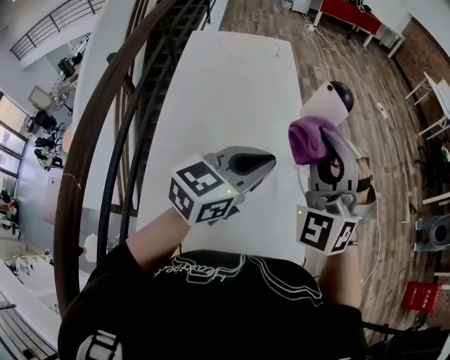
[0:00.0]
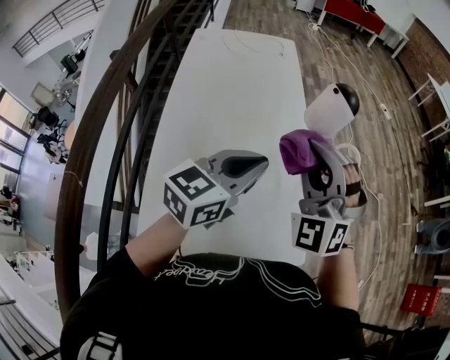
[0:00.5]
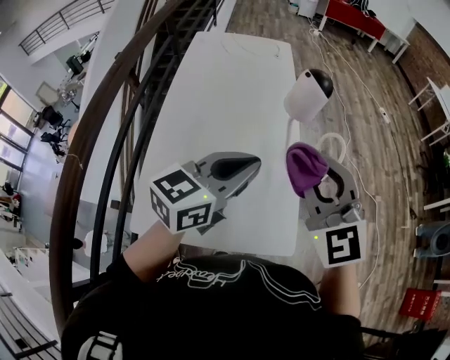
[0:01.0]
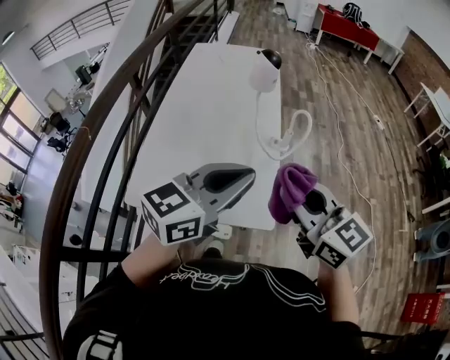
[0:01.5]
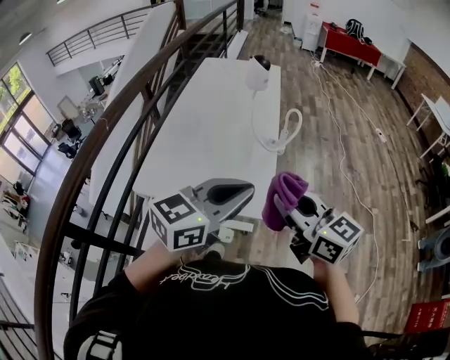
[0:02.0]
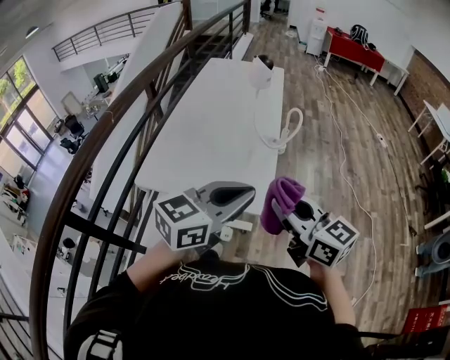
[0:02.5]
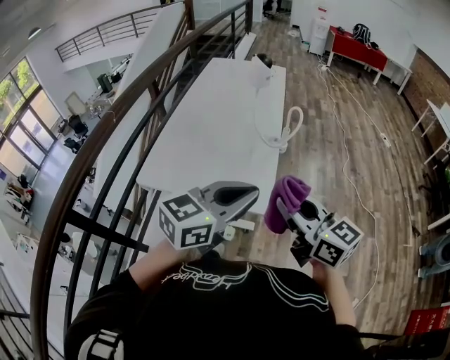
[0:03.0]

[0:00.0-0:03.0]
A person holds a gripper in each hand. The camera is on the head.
0:00.0 to 0:01.5: The grippers both shift backward and to the right by approximately 25 cm. The right gripper twists approximately 70 degrees clockwise, seen from behind.
0:01.5 to 0:03.0: The left gripper travels backward and to the right by about 15 cm, while the right gripper heads backward, covering roughly 10 cm.

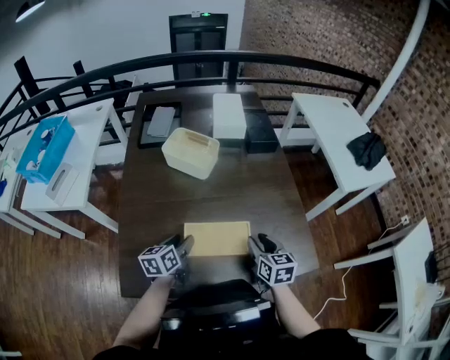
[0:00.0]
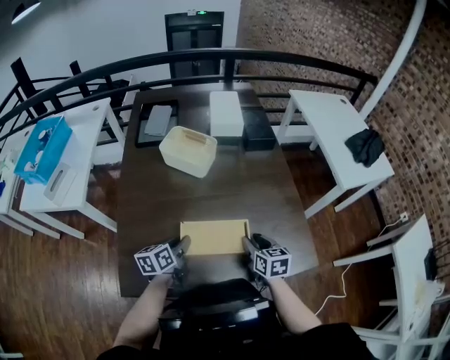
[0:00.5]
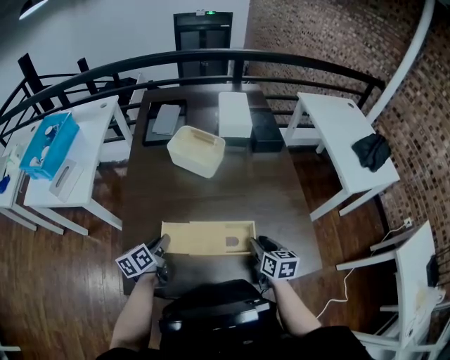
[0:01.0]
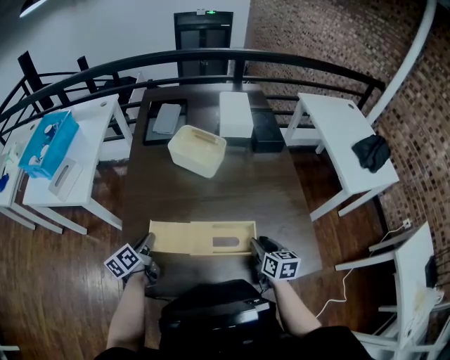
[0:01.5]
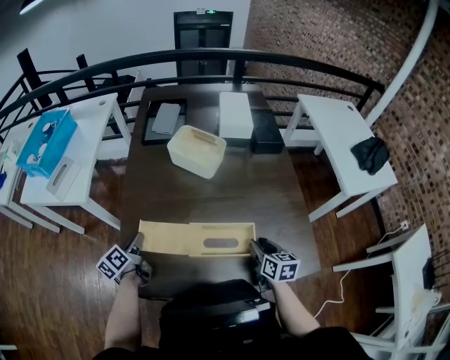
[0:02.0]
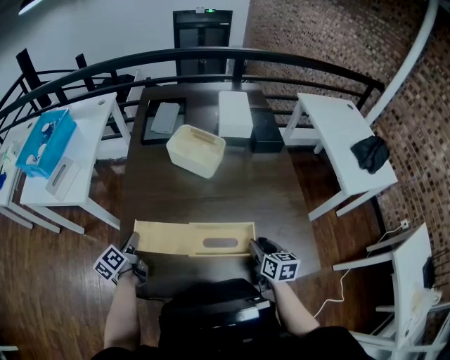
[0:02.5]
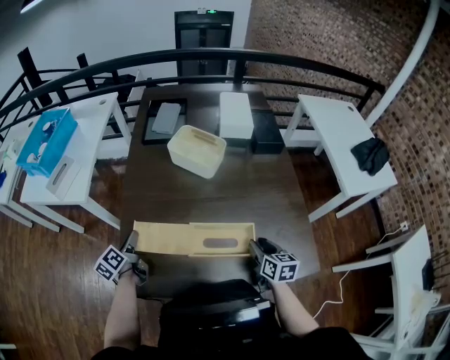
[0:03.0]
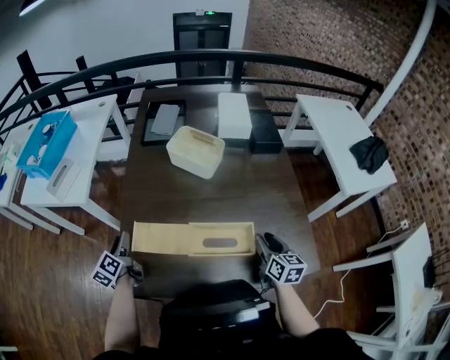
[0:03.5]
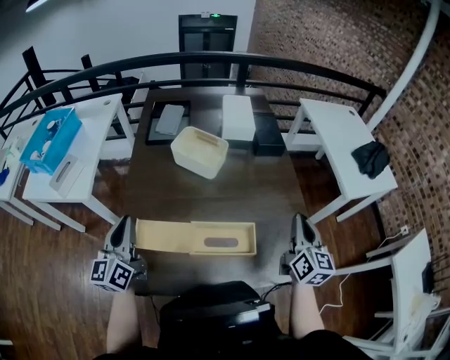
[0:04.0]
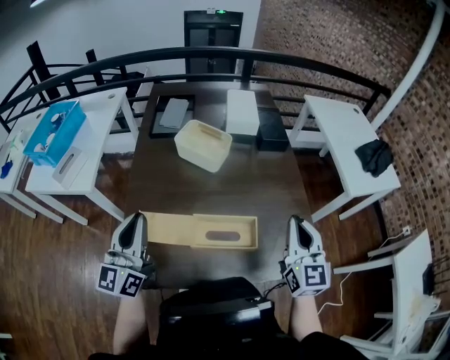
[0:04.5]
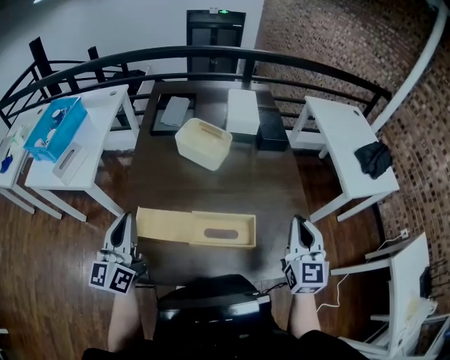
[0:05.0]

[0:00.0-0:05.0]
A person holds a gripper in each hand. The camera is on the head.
0:00.0 to 0:02.5: The left gripper goes approximately 20 cm to the left, turns by about 30 degrees, and closes.
0:02.5 to 0:05.0: The grippers both shift upward by approximately 20 cm. The right gripper changes its angle by roughly 40 degrees, and closes its fingers; the left gripper tips its fingers upward by approximately 30 degrees, and opens and closes again.

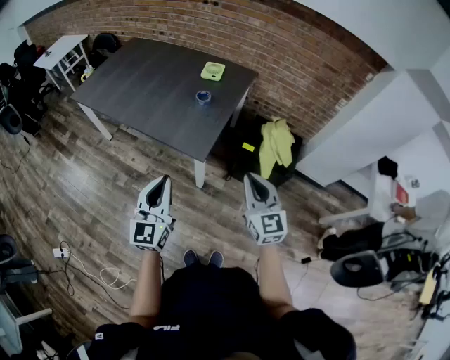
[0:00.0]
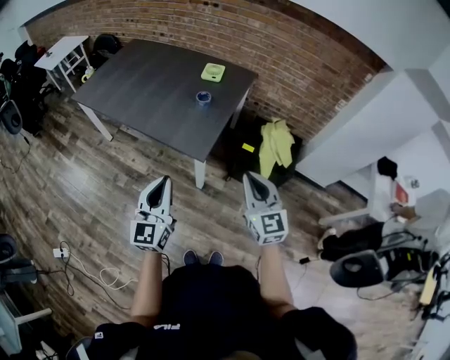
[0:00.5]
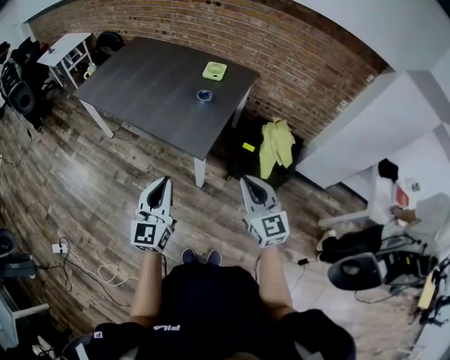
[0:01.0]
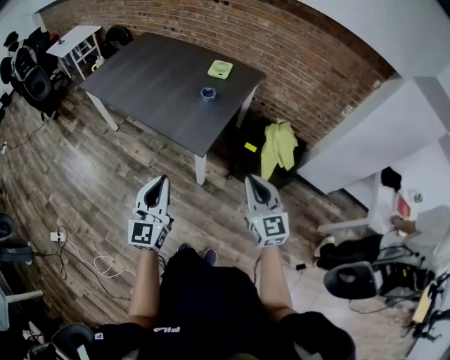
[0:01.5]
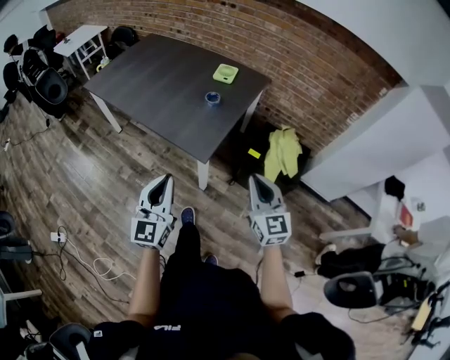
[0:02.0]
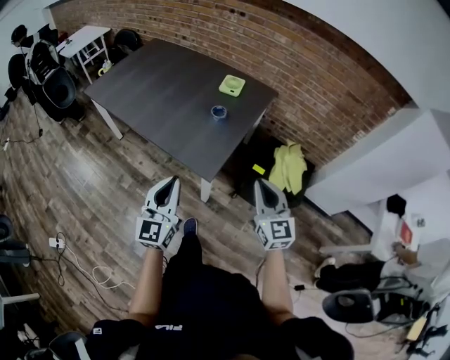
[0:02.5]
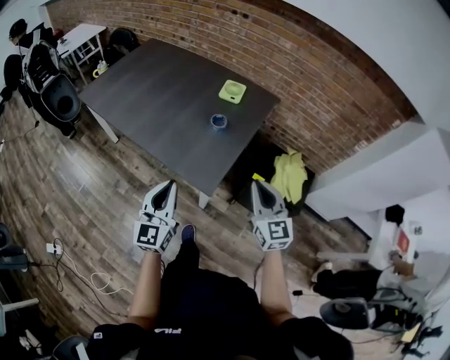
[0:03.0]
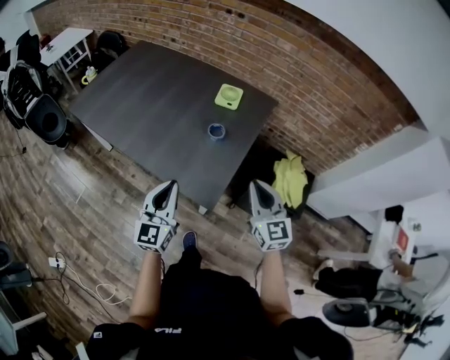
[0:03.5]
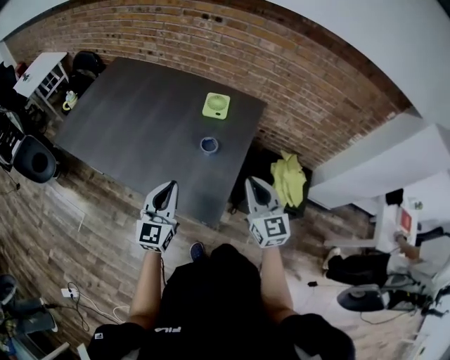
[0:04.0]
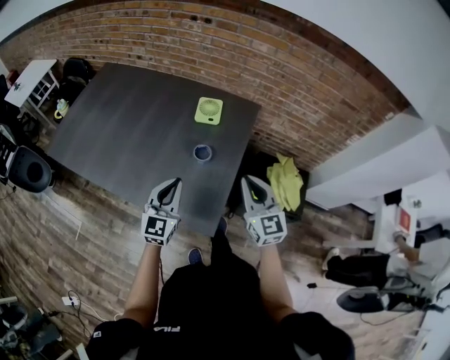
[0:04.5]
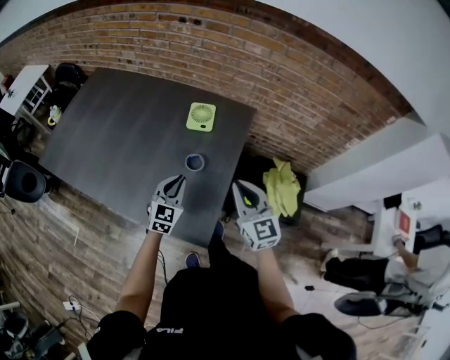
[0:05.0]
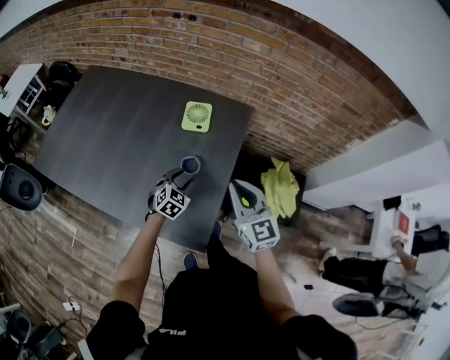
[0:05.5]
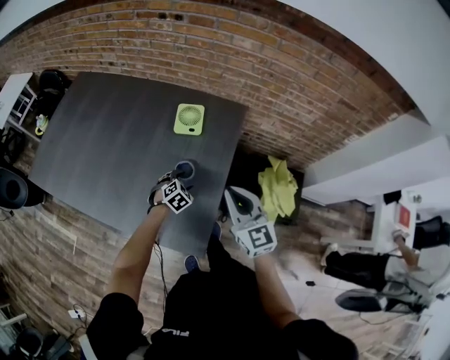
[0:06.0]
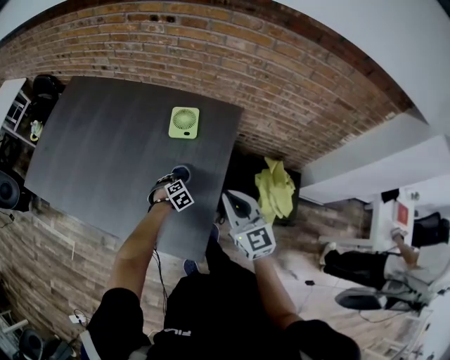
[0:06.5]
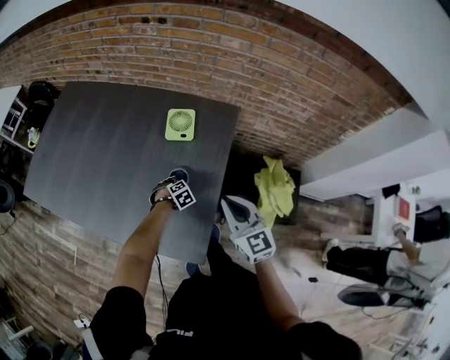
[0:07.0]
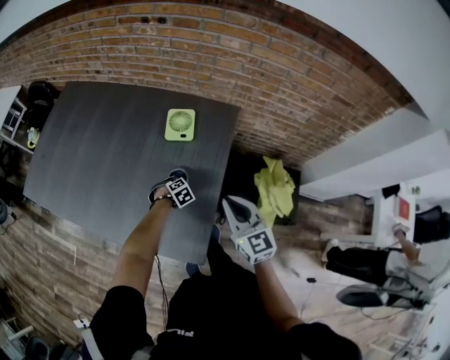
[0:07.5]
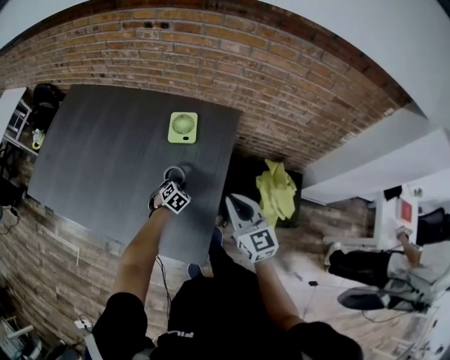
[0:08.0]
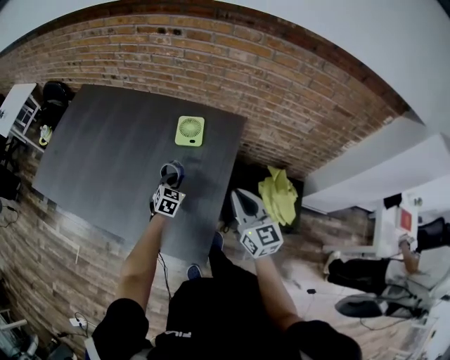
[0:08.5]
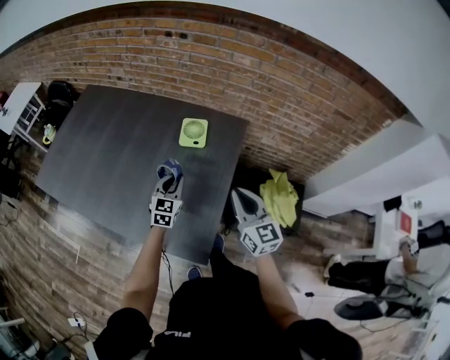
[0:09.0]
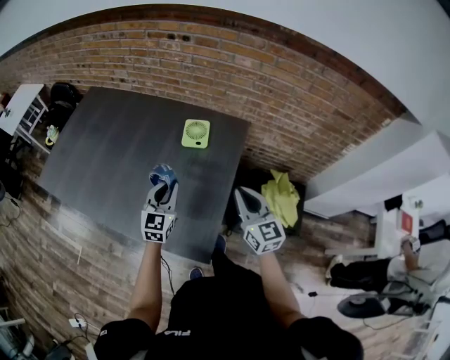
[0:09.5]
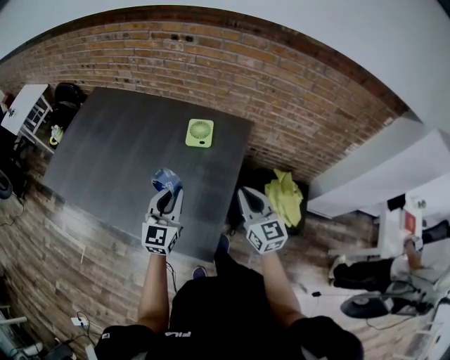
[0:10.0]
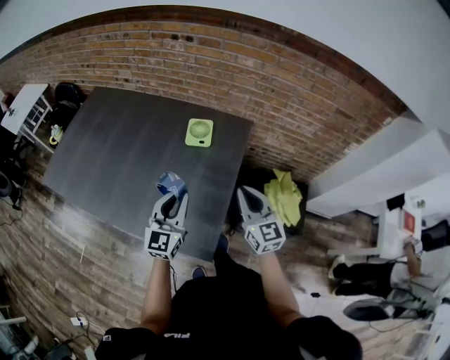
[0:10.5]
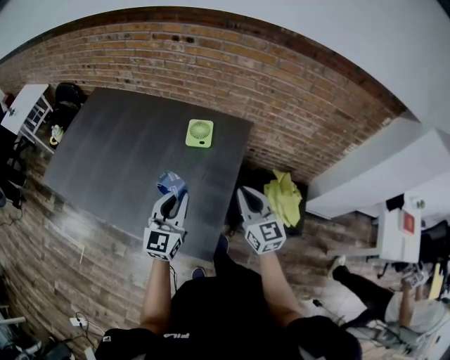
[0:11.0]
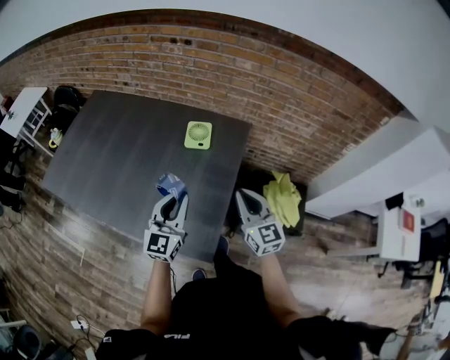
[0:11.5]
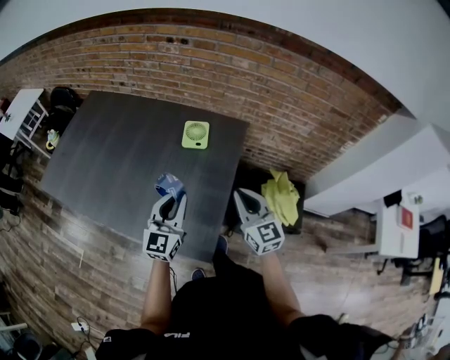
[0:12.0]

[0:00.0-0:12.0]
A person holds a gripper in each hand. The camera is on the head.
0:00.0 to 0:02.0: The grippers make only small movements.
0:02.0 to 0:04.0: Both grippers travel together forward, about 30 cm.
0:04.0 to 0:06.0: The right gripper moves forward, roughly 15 cm; the left gripper heads downward, forward and to the right, covering approximately 40 cm, angles its fingers downward, by roughly 60 degrees, and opens.
0:06.0 to 0:08.0: The left gripper closes its fingers.
0:08.0 to 0:10.0: The left gripper travels upward by roughly 30 cm, and tips its fingers upward by about 60 degrees.
0:10.0 to 0:12.0: The grippers make only small movements.

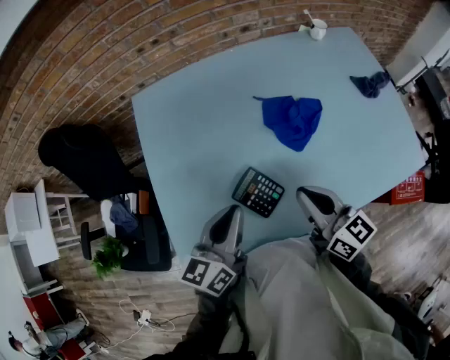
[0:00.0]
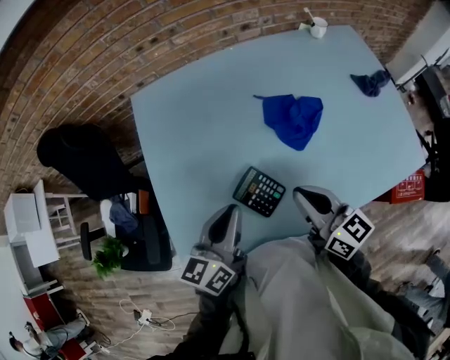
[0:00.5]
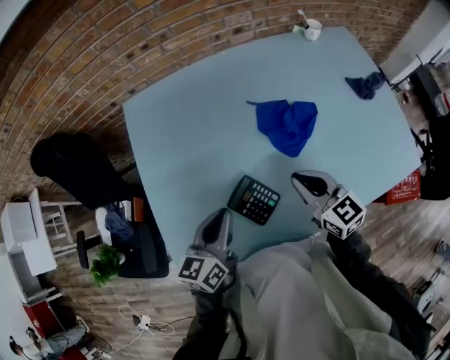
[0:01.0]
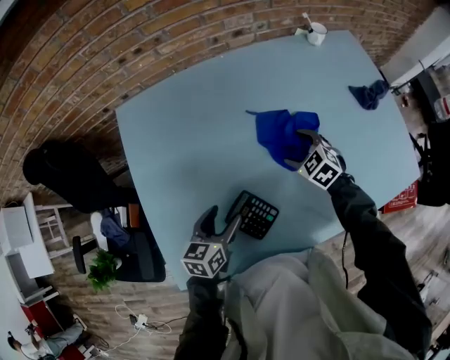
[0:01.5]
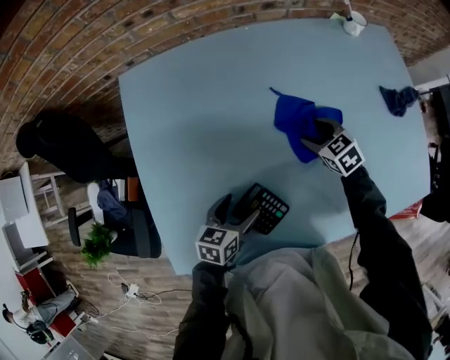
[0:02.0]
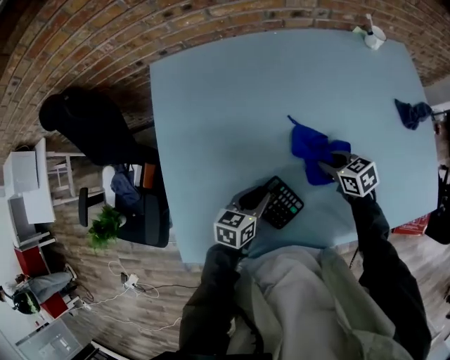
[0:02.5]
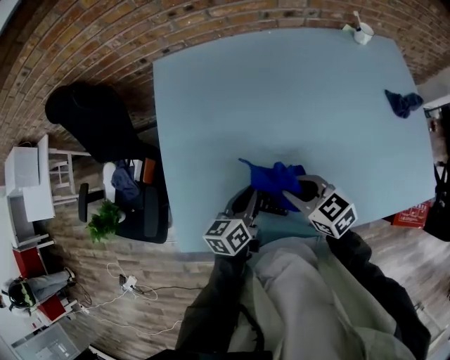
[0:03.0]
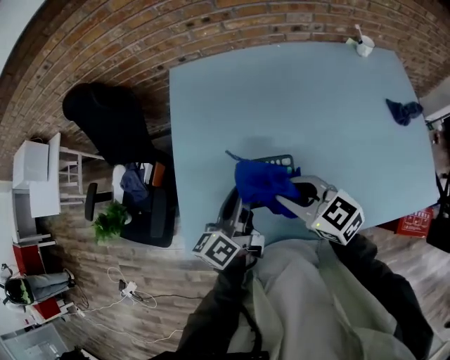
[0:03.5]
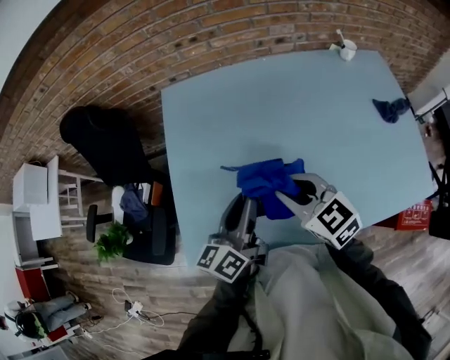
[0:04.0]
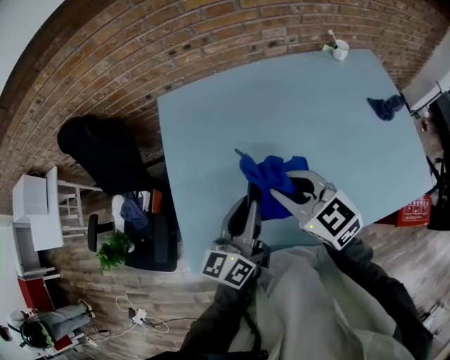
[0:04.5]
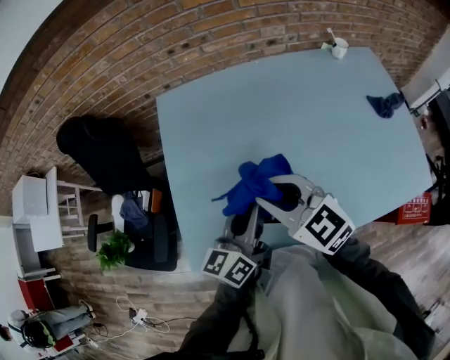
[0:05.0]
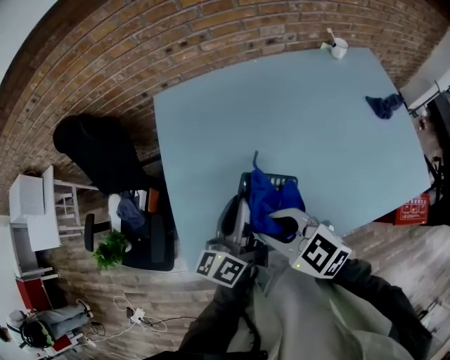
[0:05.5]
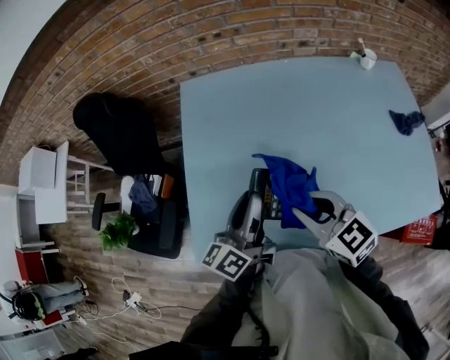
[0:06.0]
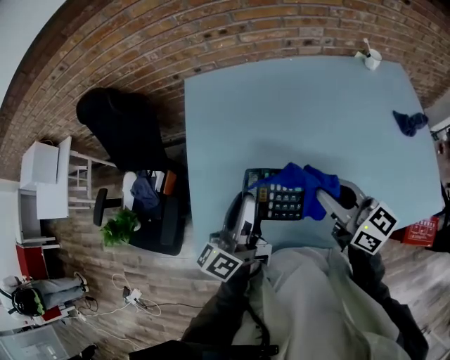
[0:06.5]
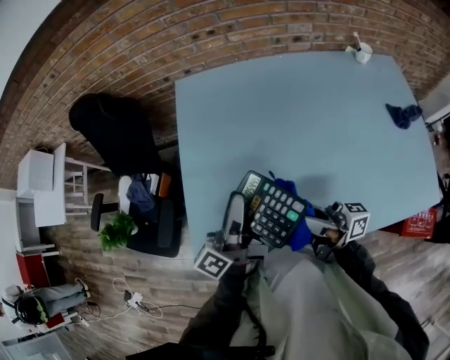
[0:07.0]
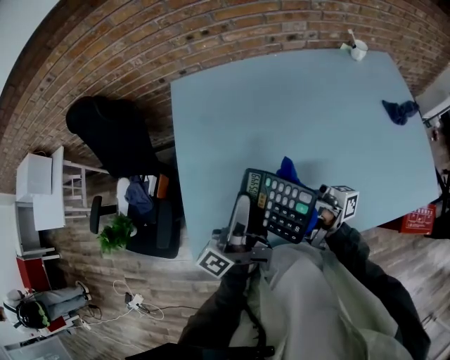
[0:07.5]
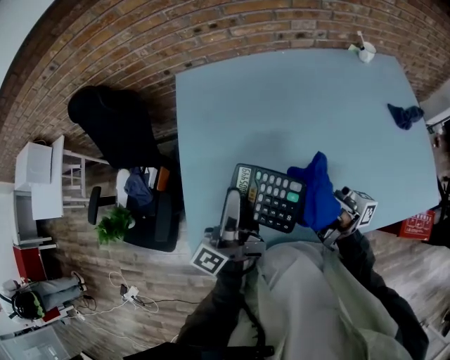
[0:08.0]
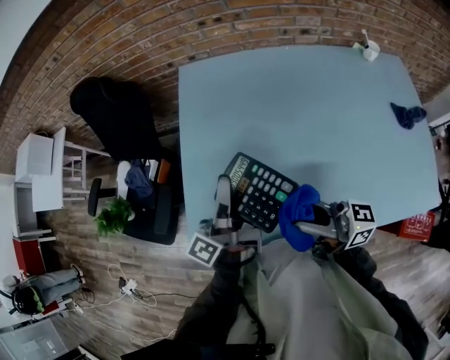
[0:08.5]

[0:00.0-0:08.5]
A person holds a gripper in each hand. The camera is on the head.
0:00.0 to 0:02.0: The left gripper moves downward, roughly 20 cm, swivels approximately 30 degrees, and opens up, while the right gripper goes some 30 cm forward and downward, tilts its fingers about 40 degrees downward, and opens.
0:02.0 to 0:04.0: The right gripper moves roughly 35 cm, swivels some 30 degrees, and closes up. Meanwhile the left gripper moves upward, some 20 cm, angles its fingers upward, by about 40 degrees, and closes.
0:04.0 to 0:06.5: The right gripper rotates roughly 30 degrees; the left gripper is displaced to the left by about 5 cm.
0:06.5 to 0:08.5: The left gripper changes its angle by roughly 30 degrees, while the right gripper goes left and right, approximately 10 cm each way, reversing 2 times, and swivels some 50 degrees.
